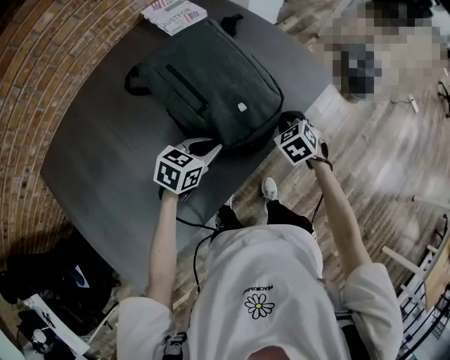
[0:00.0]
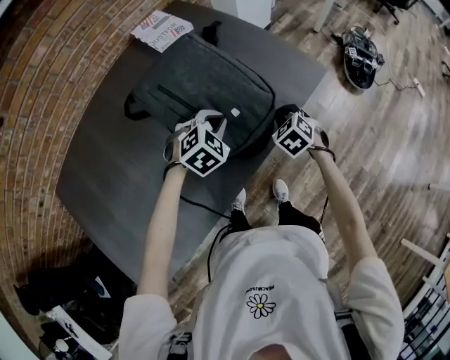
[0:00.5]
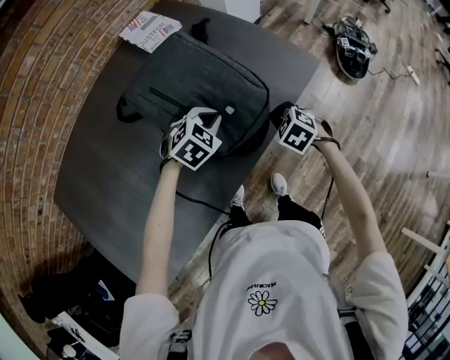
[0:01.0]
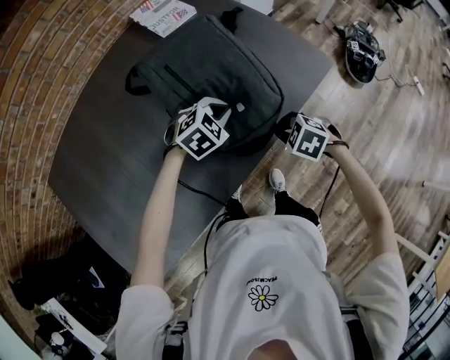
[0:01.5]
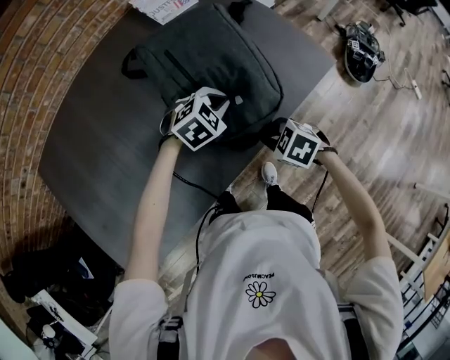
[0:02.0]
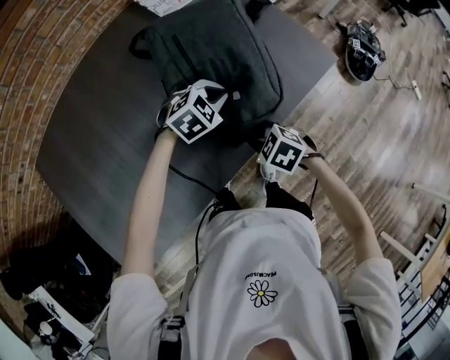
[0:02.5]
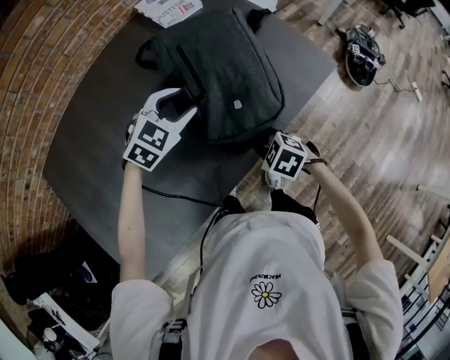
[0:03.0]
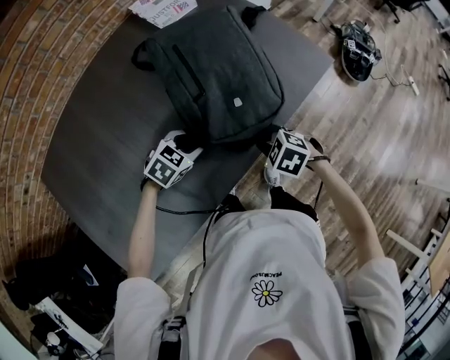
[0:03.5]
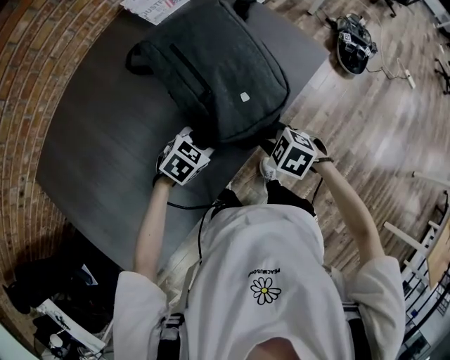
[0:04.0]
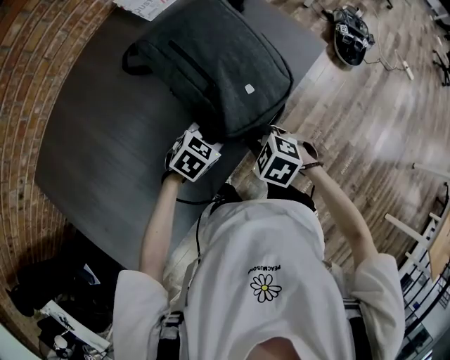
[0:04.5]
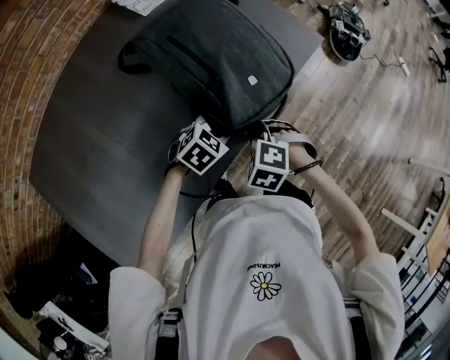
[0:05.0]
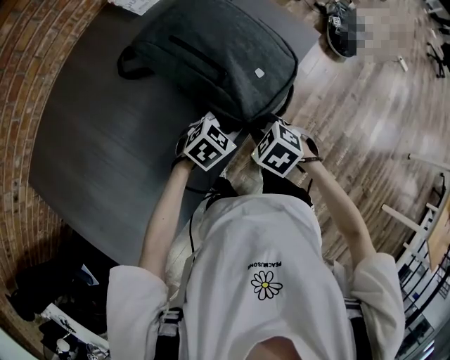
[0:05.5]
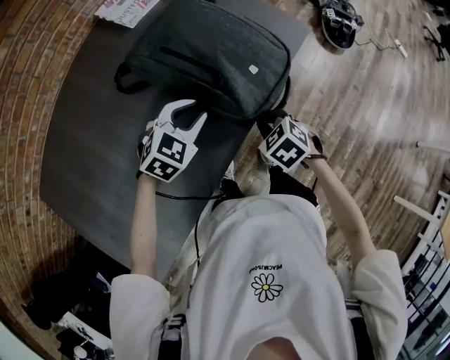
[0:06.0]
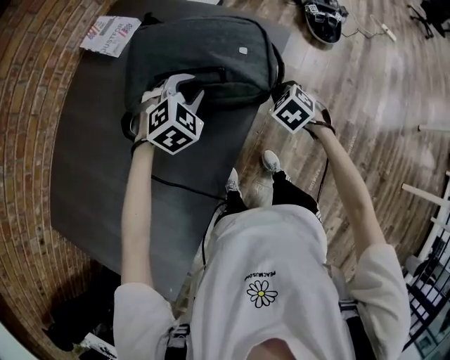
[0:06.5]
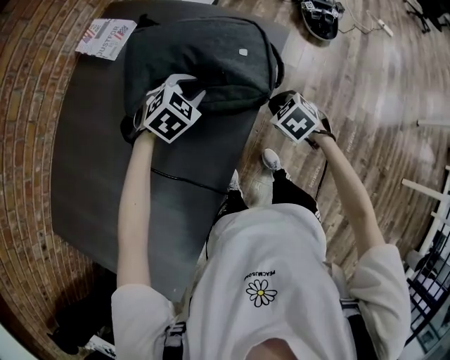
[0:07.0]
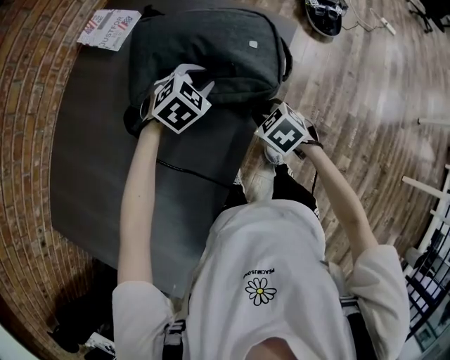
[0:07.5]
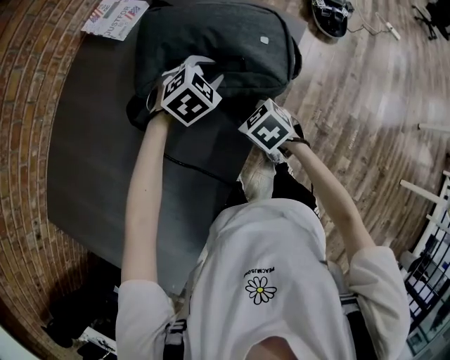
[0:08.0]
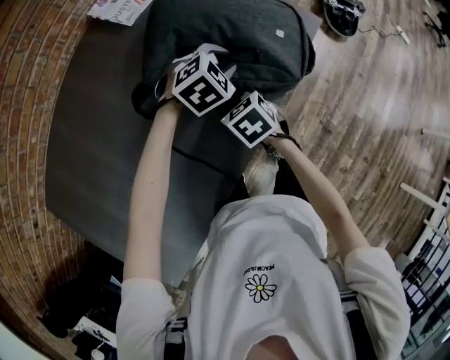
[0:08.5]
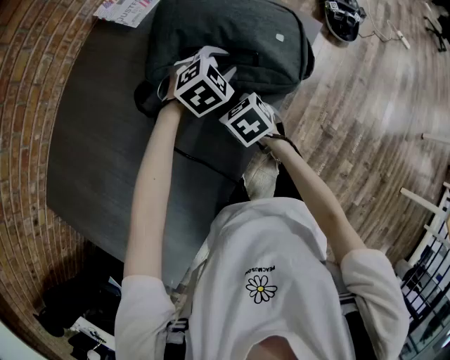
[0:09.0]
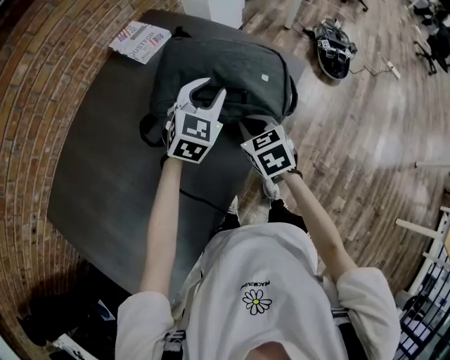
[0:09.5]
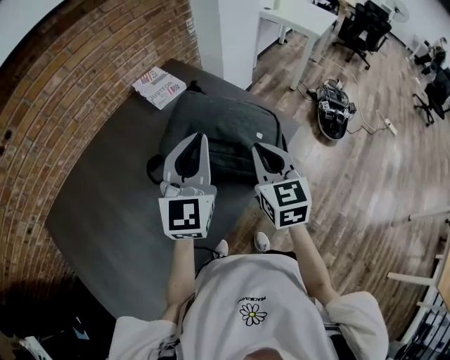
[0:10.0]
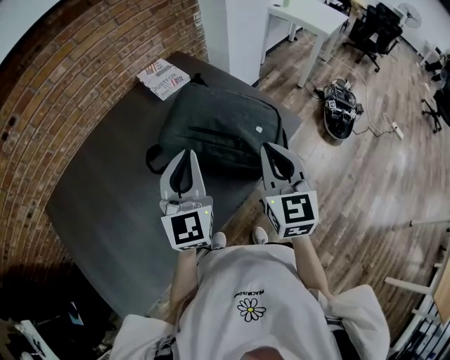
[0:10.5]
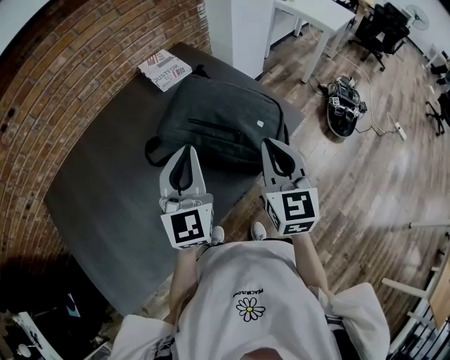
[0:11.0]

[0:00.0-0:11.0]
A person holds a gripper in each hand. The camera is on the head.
0:00.0 to 0:02.0: The left gripper shifts by roughly 10 cm, and turns by some 40 degrees; the right gripper changes place by roughly 10 cm, and changes its angle by some 40 degrees.
0:02.0 to 0:03.5: The left gripper shifts by approximately 15 cm, and opens its fingers.
0:03.5 to 0:05.5: The left gripper ends up roughly 15 cm from where it was.
0:05.5 to 0:07.5: The left gripper moves forward and upward, roughly 15 cm, and changes its angle by some 30 degrees. The right gripper is displaced forward by about 10 cm, and swivels roughly 20 degrees.
0:07.5 to 0:09.0: The right gripper is displaced to the left by some 15 cm.
0:09.0 to 0:11.0: The right gripper travels upward and to the right by some 30 cm, and tilts its fingers roughly 50 degrees upward. Meanwhile the left gripper shifts roughly 25 cm upward and backward, tips its fingers upward by roughly 50 degrees, and closes.

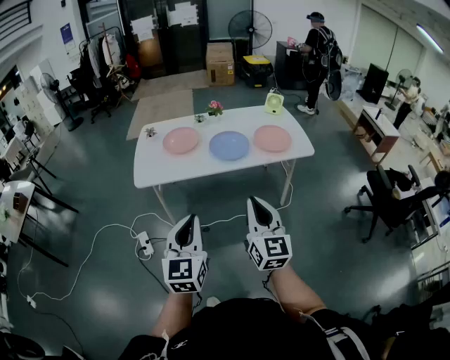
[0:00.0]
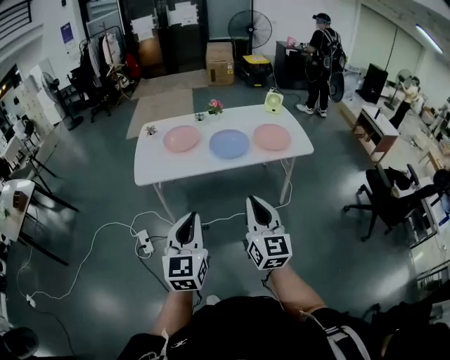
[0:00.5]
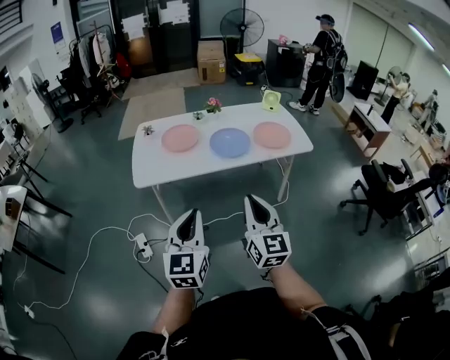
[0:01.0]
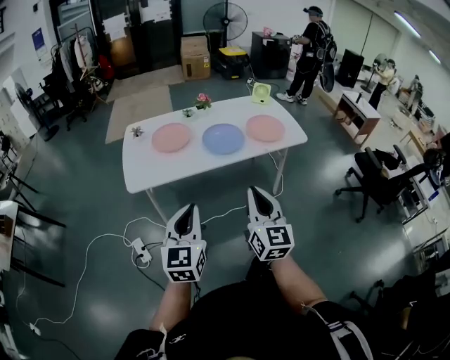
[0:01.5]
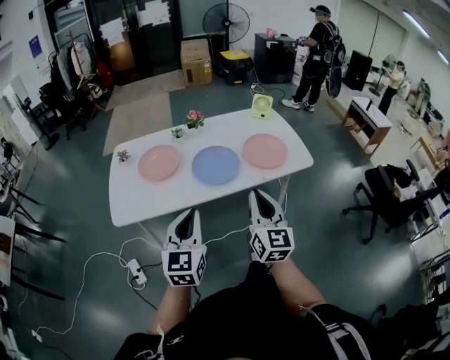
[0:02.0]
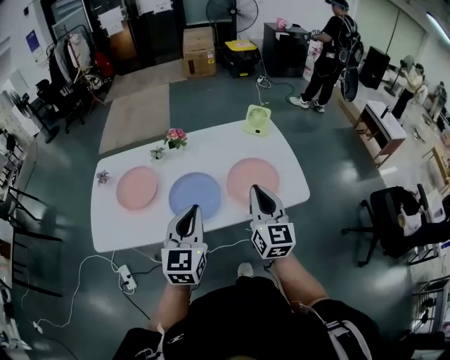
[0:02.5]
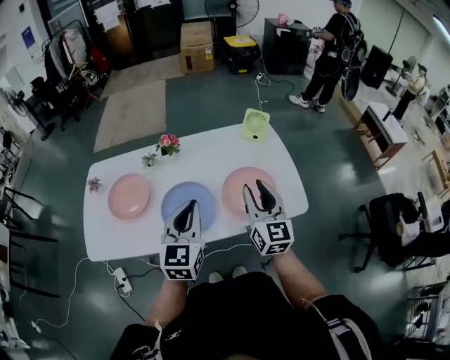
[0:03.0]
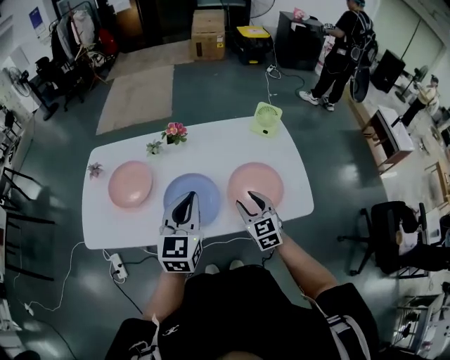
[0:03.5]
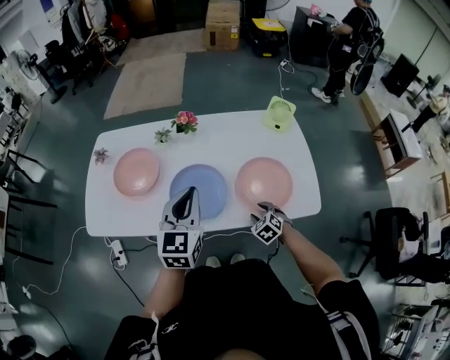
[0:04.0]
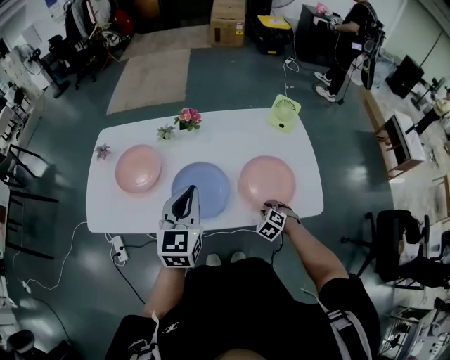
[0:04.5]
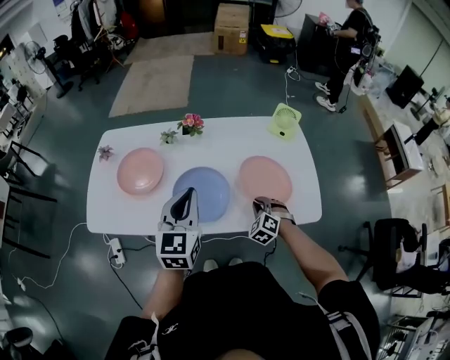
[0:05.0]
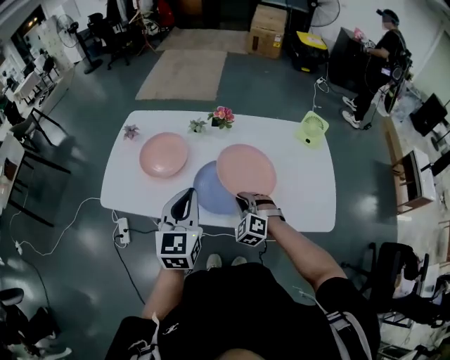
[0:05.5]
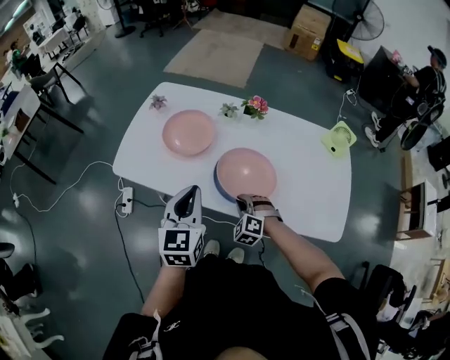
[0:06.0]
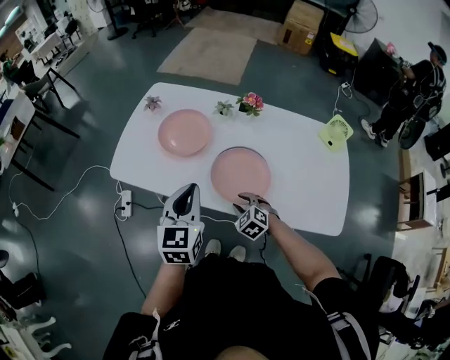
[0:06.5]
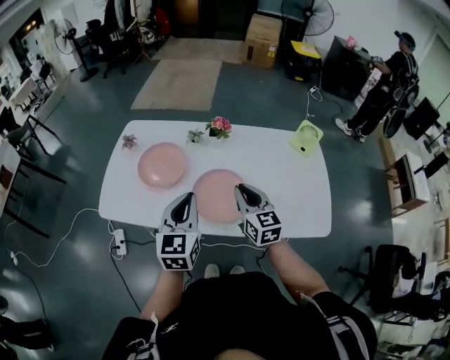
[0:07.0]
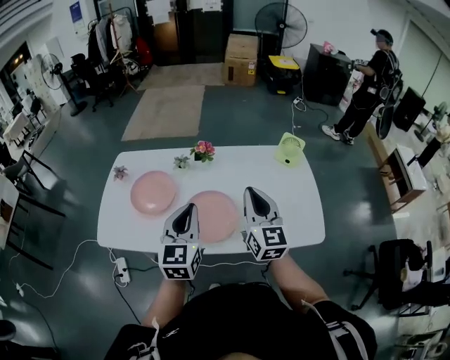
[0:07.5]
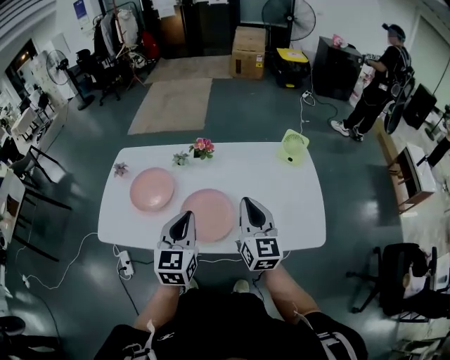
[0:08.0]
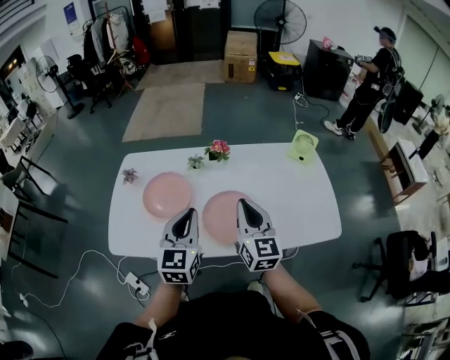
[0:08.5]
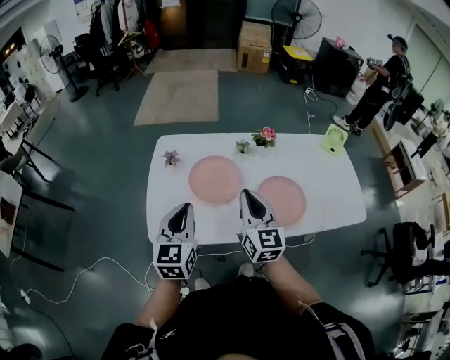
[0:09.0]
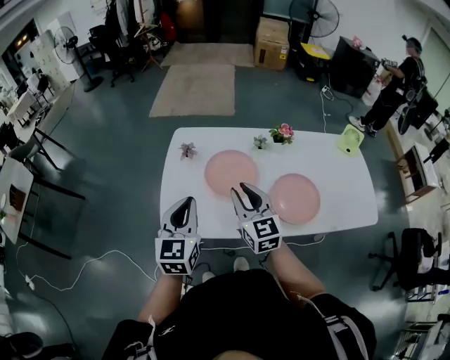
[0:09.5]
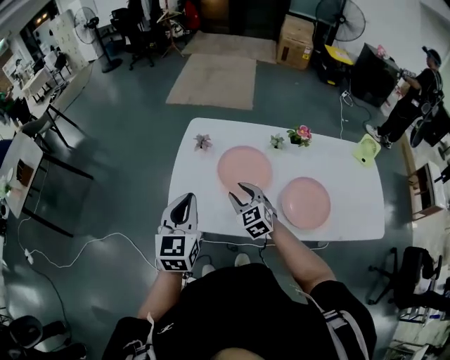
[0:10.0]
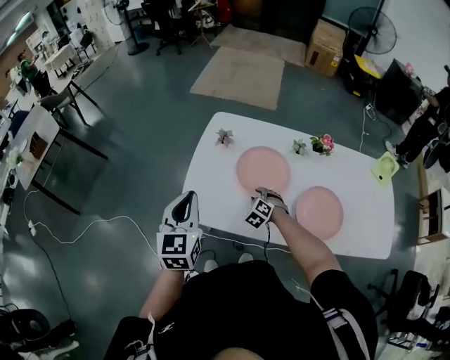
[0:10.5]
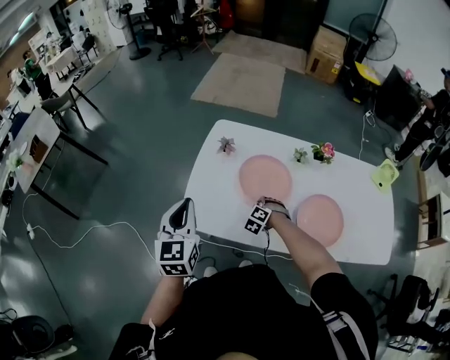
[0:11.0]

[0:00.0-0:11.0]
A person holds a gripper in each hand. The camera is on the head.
0:00.0 to 0:02.0: The grippers both shift forward by roughly 30 cm.
0:02.0 to 0:03.5: The pair of grippers is taken forward, some 40 cm. The right gripper turns by approximately 40 degrees, and opens.
0:03.5 to 0:05.5: The grippers both shift to the left by roughly 15 cm. The right gripper twists some 50 degrees counterclockwise, seen from behind, and closes its fingers.
0:05.5 to 0:07.5: The left gripper moves about 10 cm to the left and comes back. Meanwhile the right gripper moves upward, roughly 25 cm, rotates around the line of its fingers by approximately 60 degrees, clockwise from behind, and opens, then closes again.
0:07.5 to 0:09.0: Both grippers are carried to the left, roughly 40 cm.
0:09.0 to 0:11.0: The right gripper moves downward, approximately 30 cm, angles its fingers downward, by about 60 degrees, and opens, then closes once more. The left gripper heads to the left, covering some 15 cm, and swivels some 20 degrees.

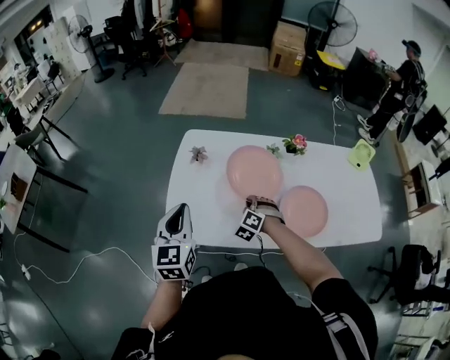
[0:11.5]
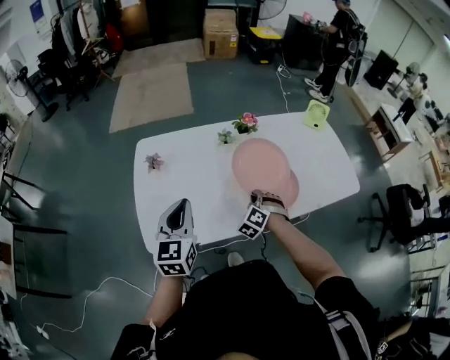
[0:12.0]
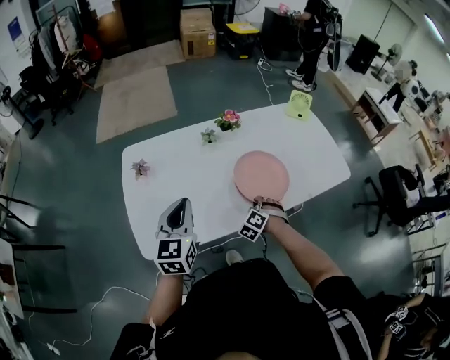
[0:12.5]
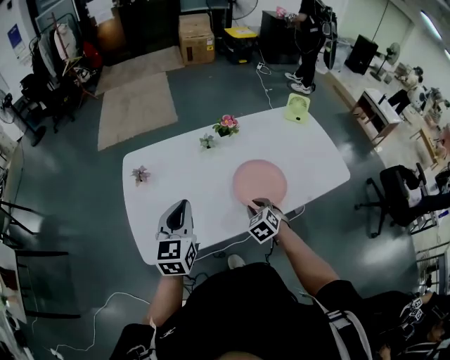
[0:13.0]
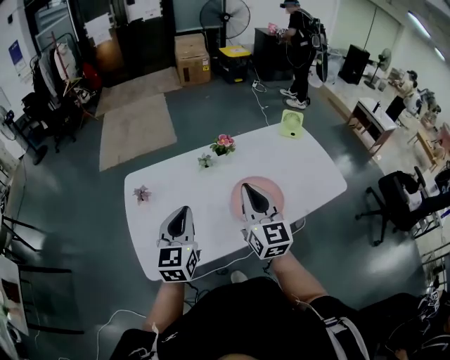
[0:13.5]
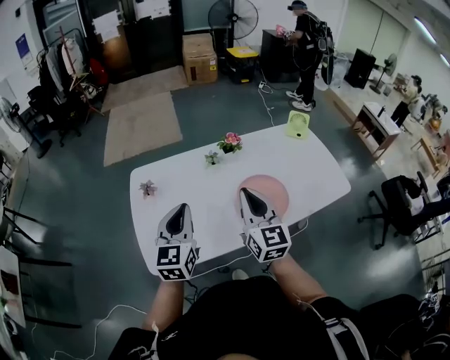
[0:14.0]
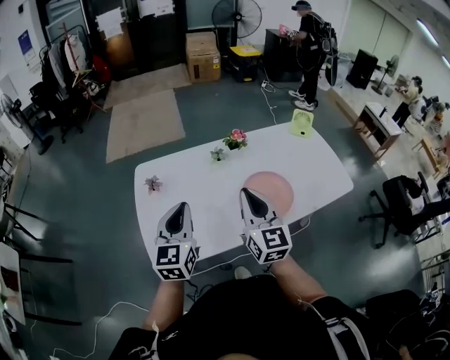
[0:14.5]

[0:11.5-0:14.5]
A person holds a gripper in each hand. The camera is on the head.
0:11.5 to 0:13.0: The left gripper shifts by roughly 15 cm, and rotates some 30 degrees. The right gripper changes place by some 20 cm, and twists about 50 degrees clockwise, seen from behind.
0:13.0 to 0:14.5: The left gripper travels upward by roughly 5 cm; the right gripper travels upward by roughly 25 cm, points its fingers about 50 degrees further upward, and closes its fingers.

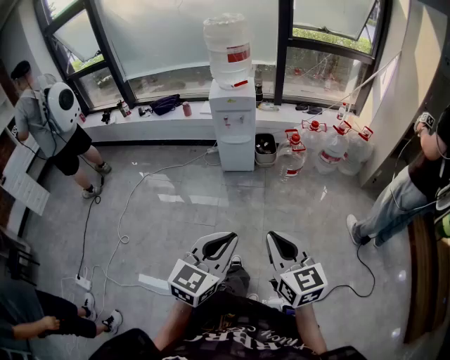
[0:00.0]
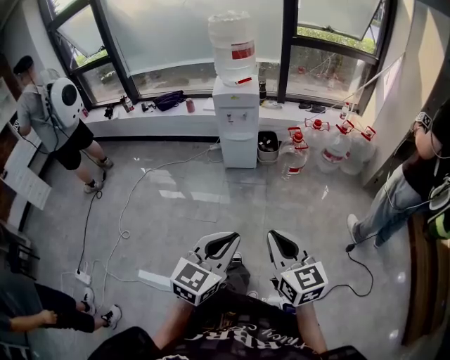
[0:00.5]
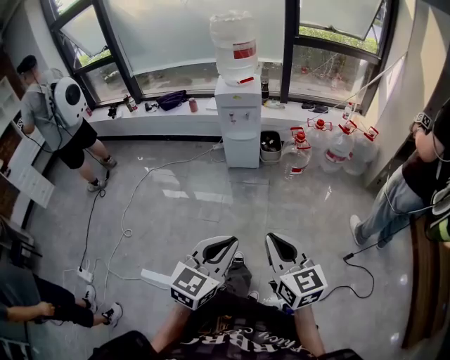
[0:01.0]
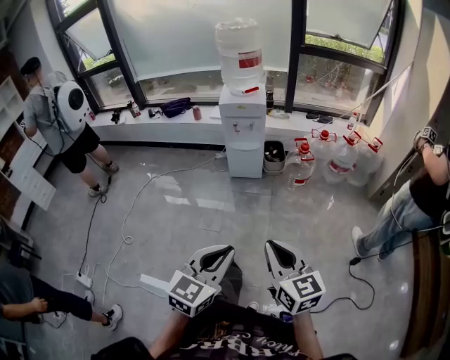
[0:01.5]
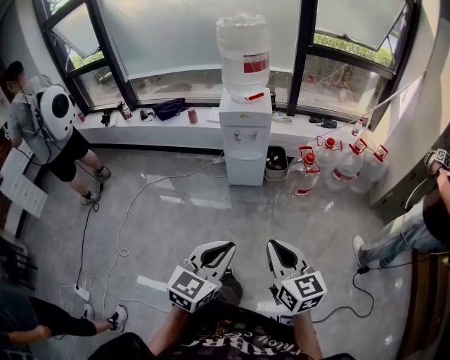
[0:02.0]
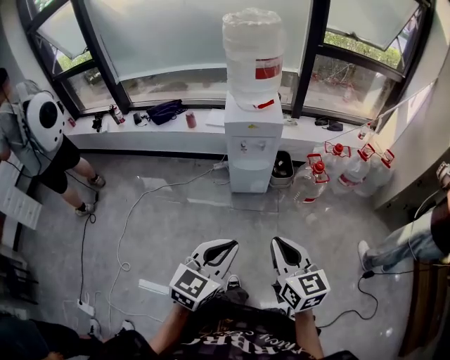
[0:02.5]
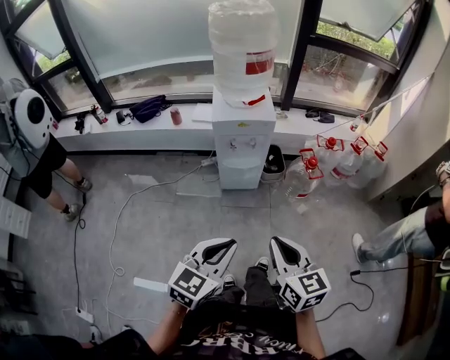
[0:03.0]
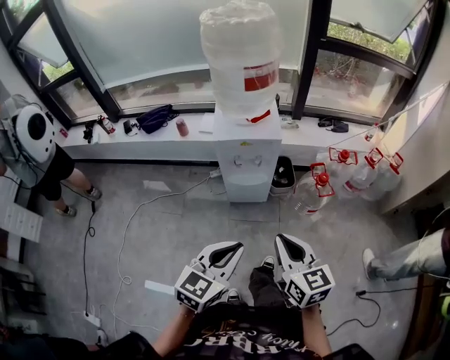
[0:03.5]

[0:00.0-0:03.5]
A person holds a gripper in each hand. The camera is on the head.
0:00.0 to 0:02.0: The left gripper goes approximately 20 cm forward and to the left, while the right gripper travels forward by some 15 cm.
0:02.0 to 0:03.5: The two grippers go approximately 30 cm forward.
